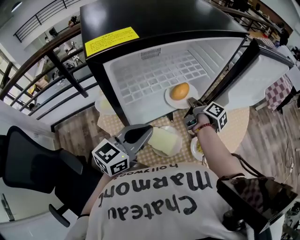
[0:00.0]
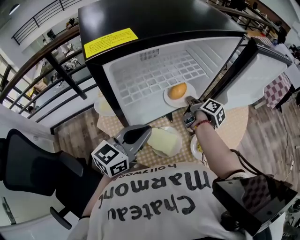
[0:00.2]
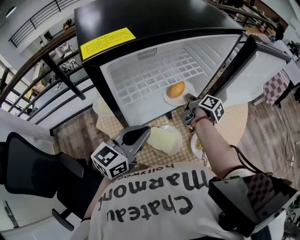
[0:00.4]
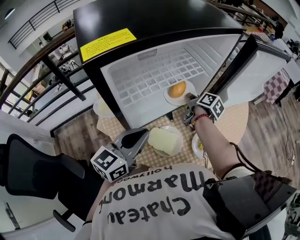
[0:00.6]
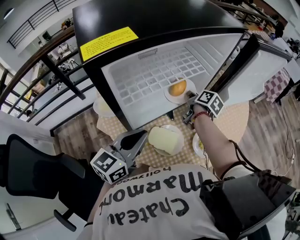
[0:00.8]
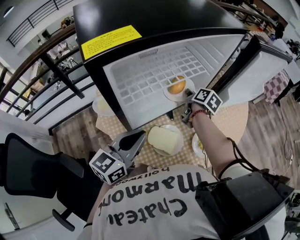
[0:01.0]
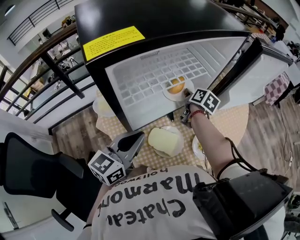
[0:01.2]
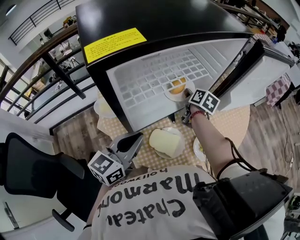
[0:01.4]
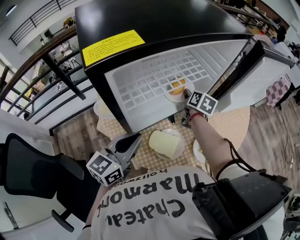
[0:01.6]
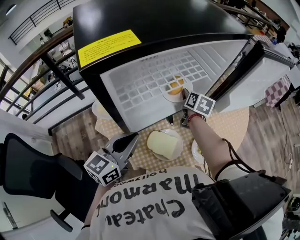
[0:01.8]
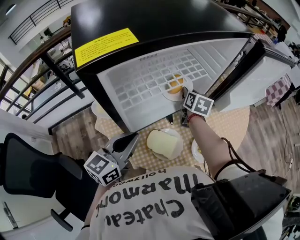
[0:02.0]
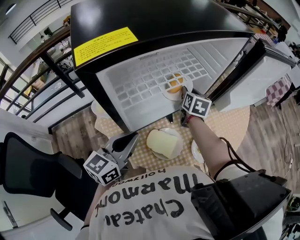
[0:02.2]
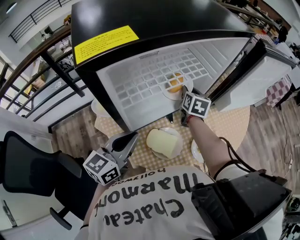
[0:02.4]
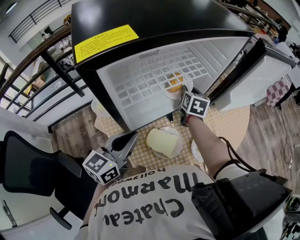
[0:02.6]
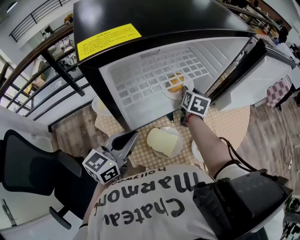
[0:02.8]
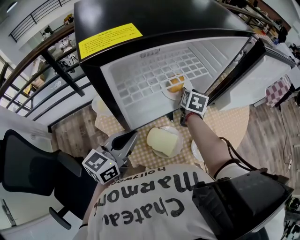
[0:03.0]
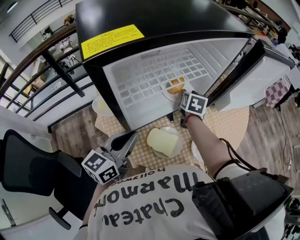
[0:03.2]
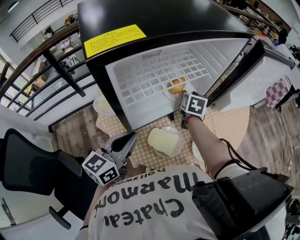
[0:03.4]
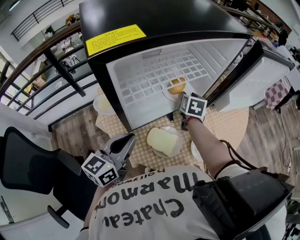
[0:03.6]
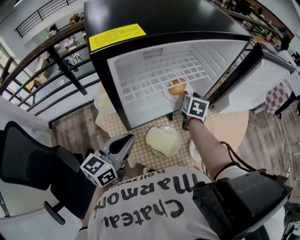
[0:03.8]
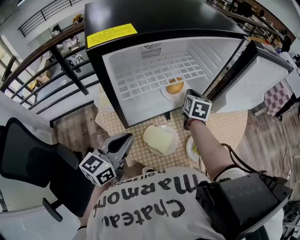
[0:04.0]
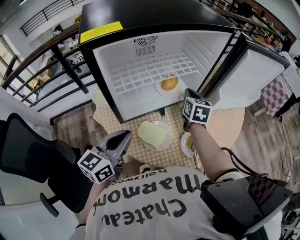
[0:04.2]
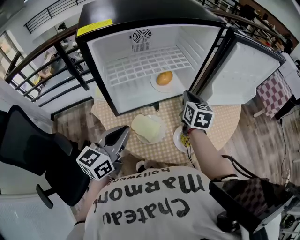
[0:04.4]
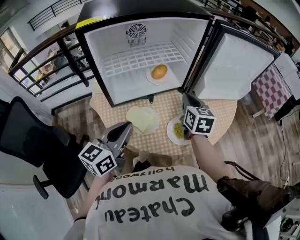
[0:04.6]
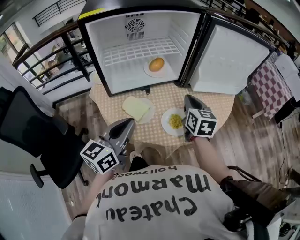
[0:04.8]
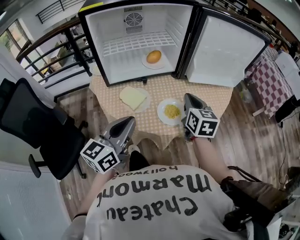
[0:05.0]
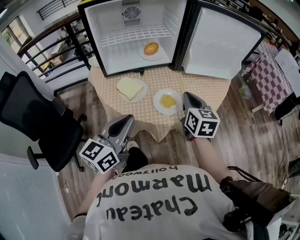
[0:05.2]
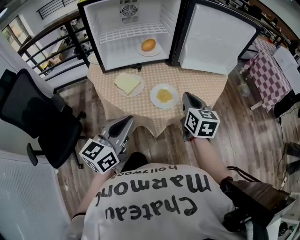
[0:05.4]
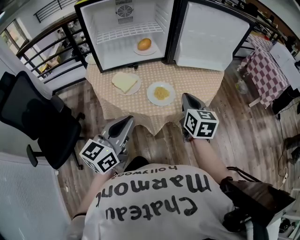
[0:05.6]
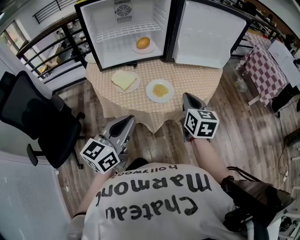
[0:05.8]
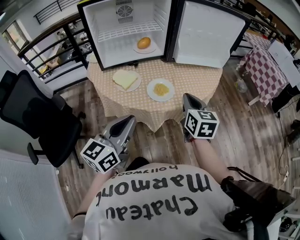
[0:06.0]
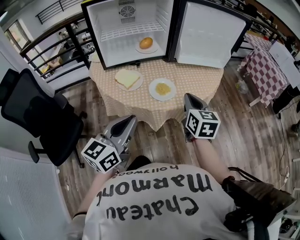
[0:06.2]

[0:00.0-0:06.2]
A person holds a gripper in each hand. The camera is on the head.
0:00.0 to 0:01.6: The right gripper moves forward, approximately 5 cm, and rolls counterclockwise, seen from behind, by roughly 40 degrees; the left gripper shifts by some 5 cm.
0:01.6 to 0:03.2: The right gripper opens up.
0:03.2 to 0:04.6: The right gripper moves backward, to the right and upward, about 20 cm, changes its angle by approximately 30 degrees, and closes up; the left gripper heads to the right and backward, covering approximately 15 cm.
0:04.6 to 0:06.2: The two grippers go about 25 cm backward and to the right.

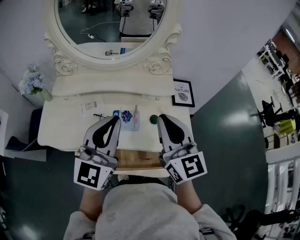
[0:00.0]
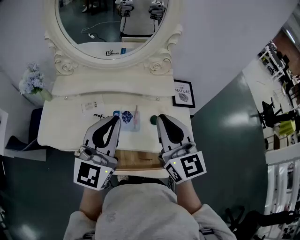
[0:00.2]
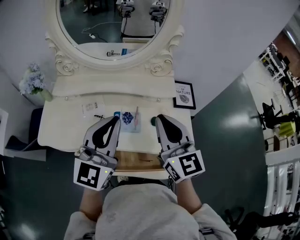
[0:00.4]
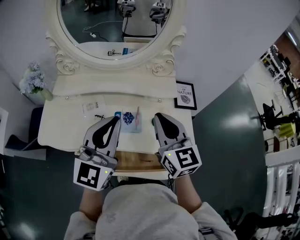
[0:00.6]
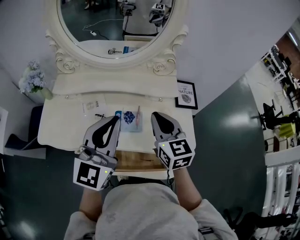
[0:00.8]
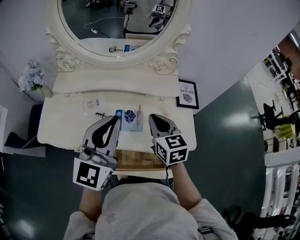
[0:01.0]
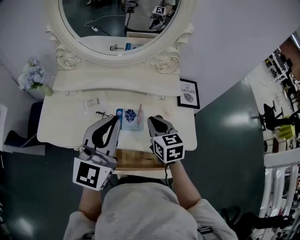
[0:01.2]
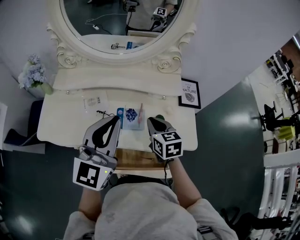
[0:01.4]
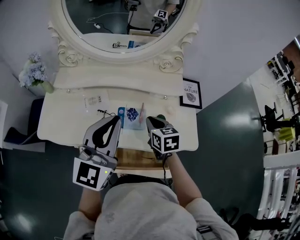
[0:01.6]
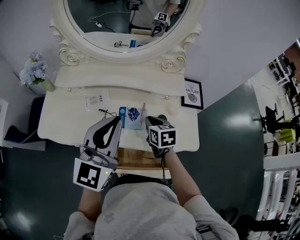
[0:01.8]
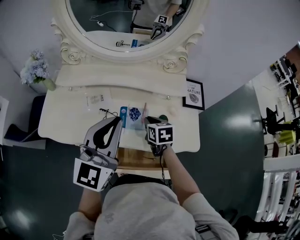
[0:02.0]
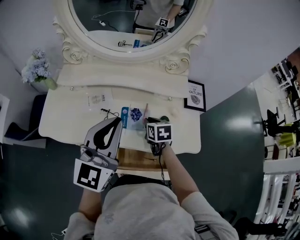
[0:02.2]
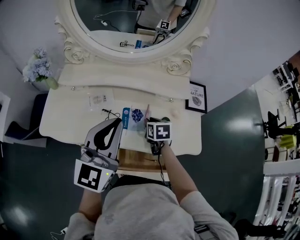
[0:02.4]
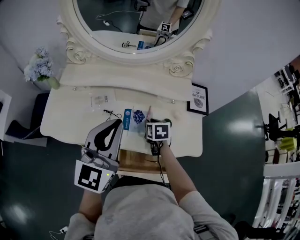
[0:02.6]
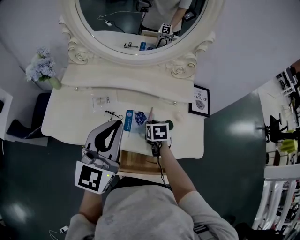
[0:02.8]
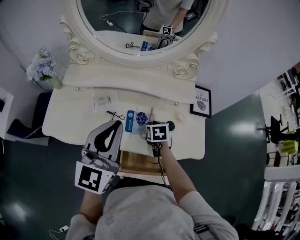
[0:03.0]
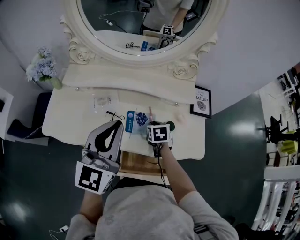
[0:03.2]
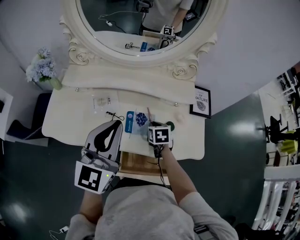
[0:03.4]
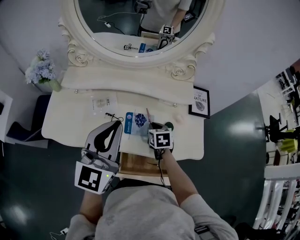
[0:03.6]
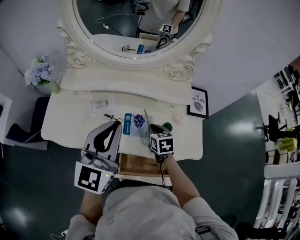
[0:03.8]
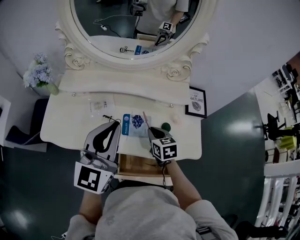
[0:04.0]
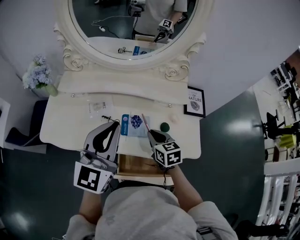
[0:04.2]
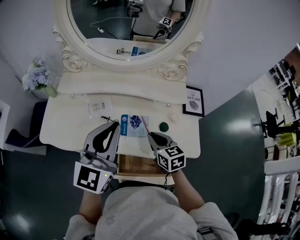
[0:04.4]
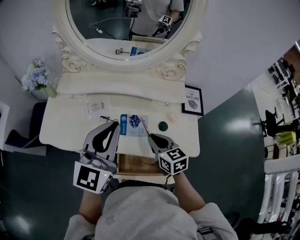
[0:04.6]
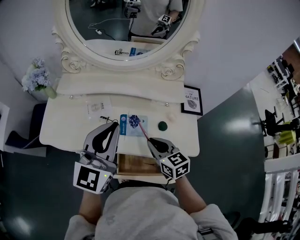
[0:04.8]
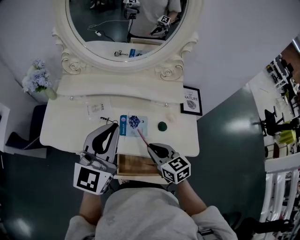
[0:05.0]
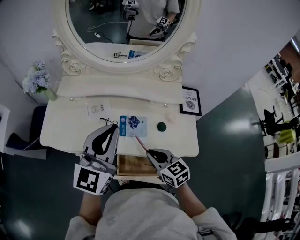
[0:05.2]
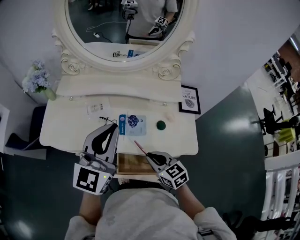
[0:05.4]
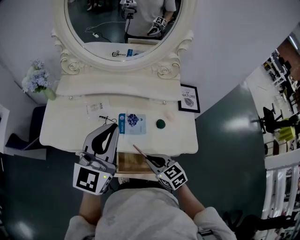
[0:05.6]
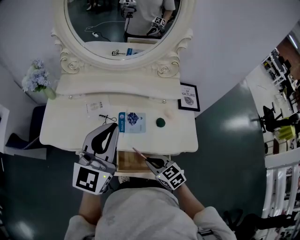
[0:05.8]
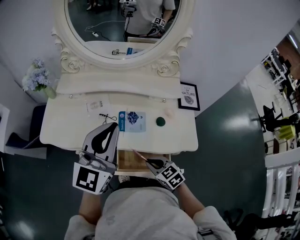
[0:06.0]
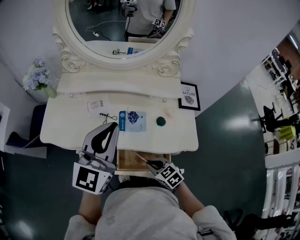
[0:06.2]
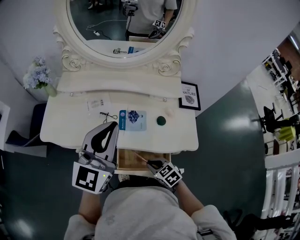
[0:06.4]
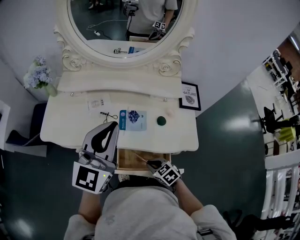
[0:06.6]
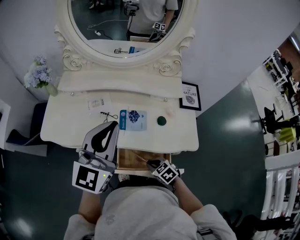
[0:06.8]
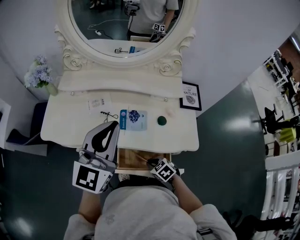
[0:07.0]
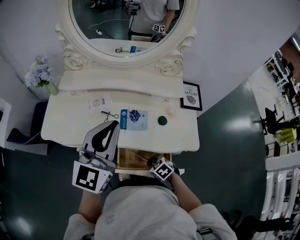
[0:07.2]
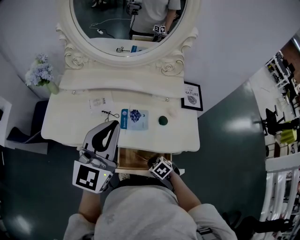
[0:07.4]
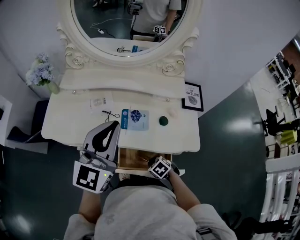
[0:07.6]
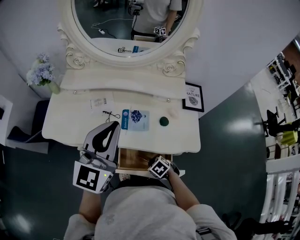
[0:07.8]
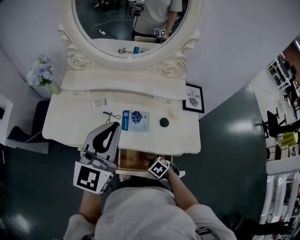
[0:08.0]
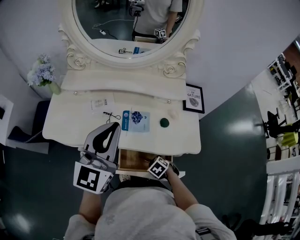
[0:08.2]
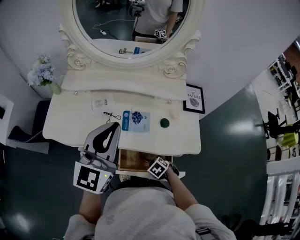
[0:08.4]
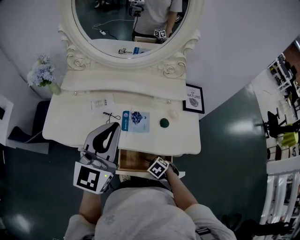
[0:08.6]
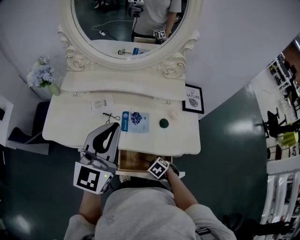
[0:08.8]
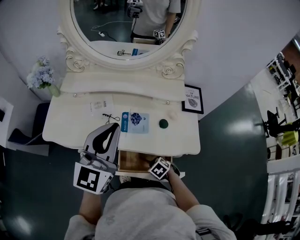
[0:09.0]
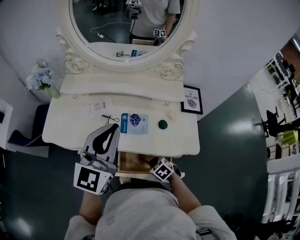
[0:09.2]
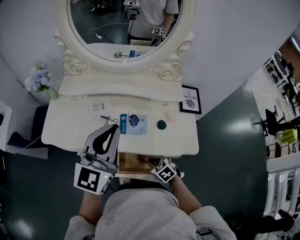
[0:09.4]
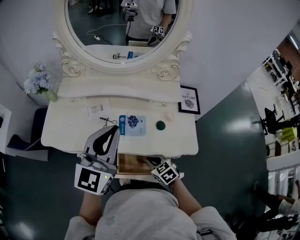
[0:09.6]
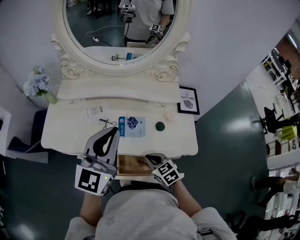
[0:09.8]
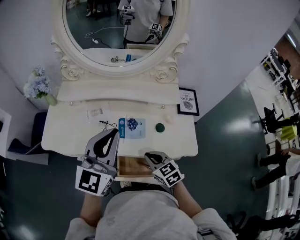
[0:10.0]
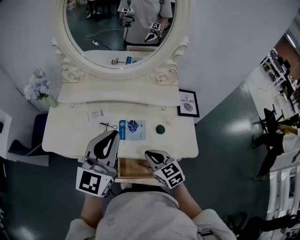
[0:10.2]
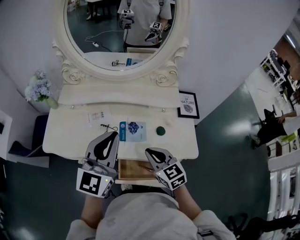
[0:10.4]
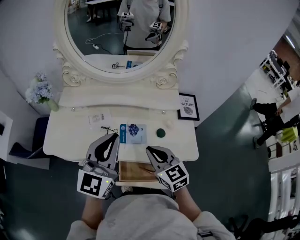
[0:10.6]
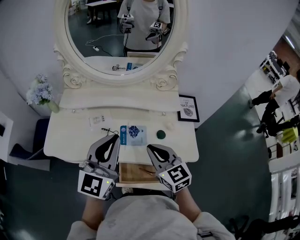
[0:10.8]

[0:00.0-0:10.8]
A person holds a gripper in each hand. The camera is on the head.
0:00.0 to 0:01.6: The right gripper shifts roughly 25 cm downward, and tilts its fingers about 40 degrees downward.
0:01.6 to 0:03.0: The right gripper travels downward by roughly 10 cm, and rotates about 20 degrees.
0:03.0 to 0:04.6: The right gripper goes approximately 15 cm upward and backward, and changes its angle by roughly 30 degrees.
0:04.6 to 0:06.2: The right gripper heads backward and downward, covering some 20 cm, and swivels about 30 degrees.
0:06.2 to 0:07.8: The right gripper shifts approximately 10 cm downward, and changes its angle by about 30 degrees.
0:07.8 to 0:09.2: The grippers stay close to where they were, moving slightly.
0:09.2 to 0:10.8: The right gripper moves upward, some 30 cm, and angles its fingers upward, by some 50 degrees.

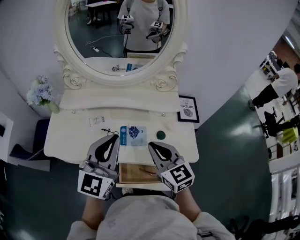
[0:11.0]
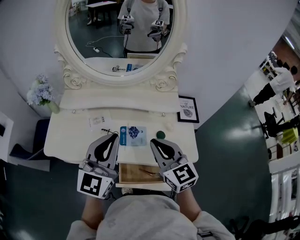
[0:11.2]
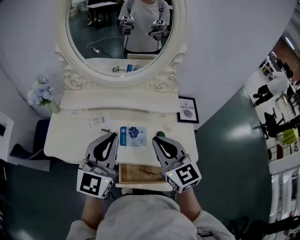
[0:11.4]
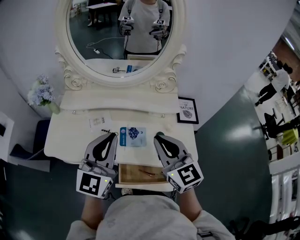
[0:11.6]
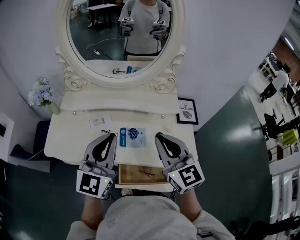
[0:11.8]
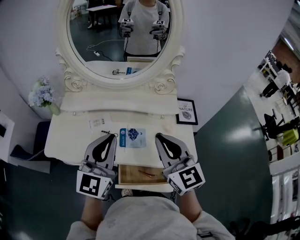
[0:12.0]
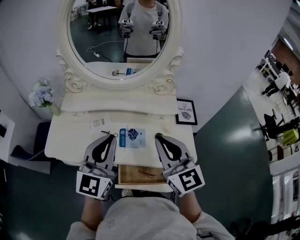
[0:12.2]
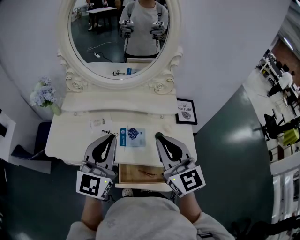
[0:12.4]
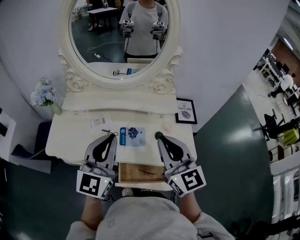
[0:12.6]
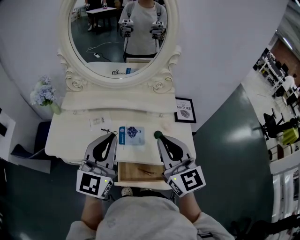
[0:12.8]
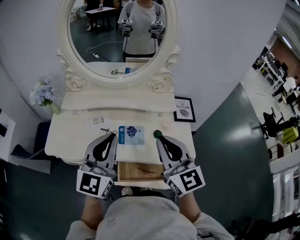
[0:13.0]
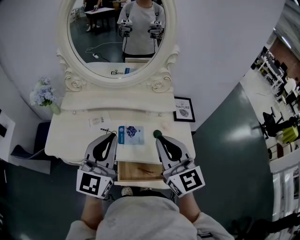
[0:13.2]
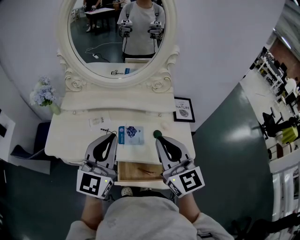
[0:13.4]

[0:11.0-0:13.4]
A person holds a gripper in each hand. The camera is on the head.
0:11.0 to 0:12.2: The right gripper travels upward by approximately 10 cm.
0:12.2 to 0:13.4: The grippers make only small movements.

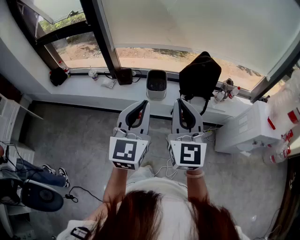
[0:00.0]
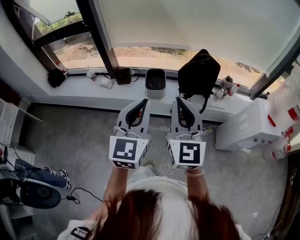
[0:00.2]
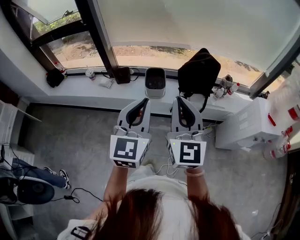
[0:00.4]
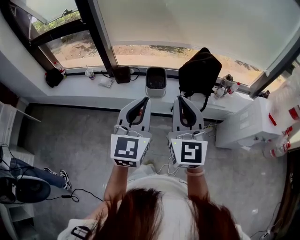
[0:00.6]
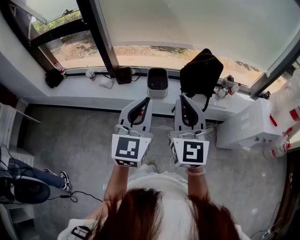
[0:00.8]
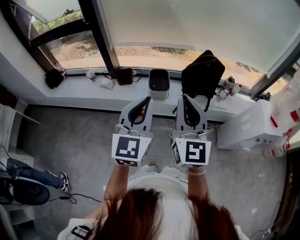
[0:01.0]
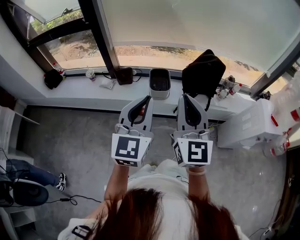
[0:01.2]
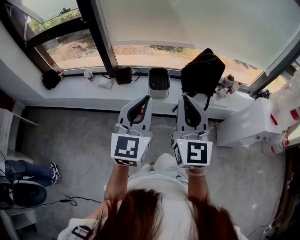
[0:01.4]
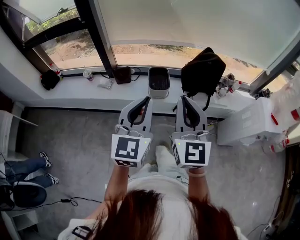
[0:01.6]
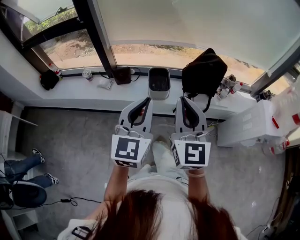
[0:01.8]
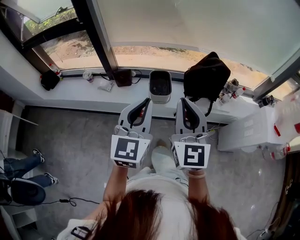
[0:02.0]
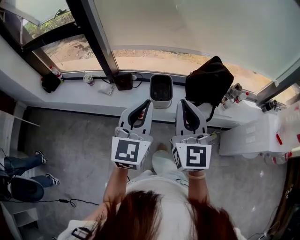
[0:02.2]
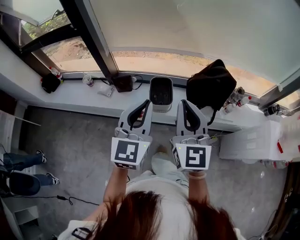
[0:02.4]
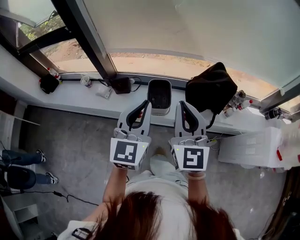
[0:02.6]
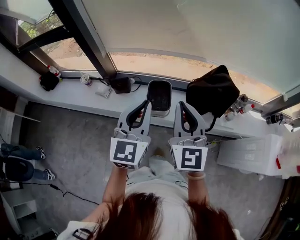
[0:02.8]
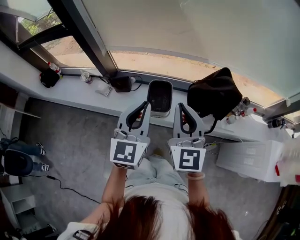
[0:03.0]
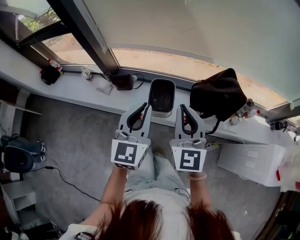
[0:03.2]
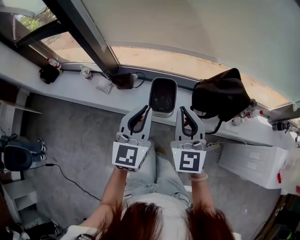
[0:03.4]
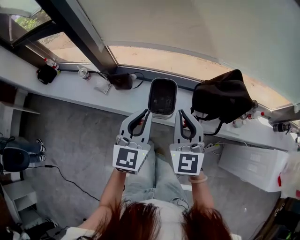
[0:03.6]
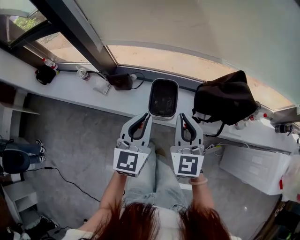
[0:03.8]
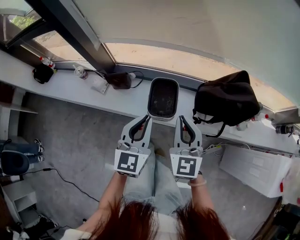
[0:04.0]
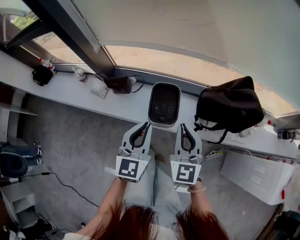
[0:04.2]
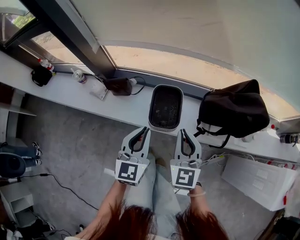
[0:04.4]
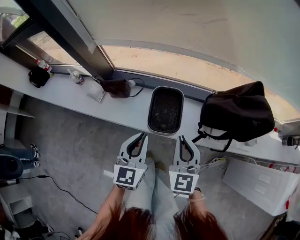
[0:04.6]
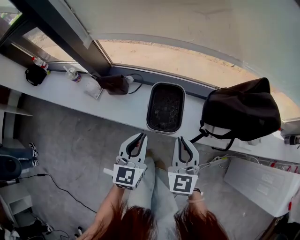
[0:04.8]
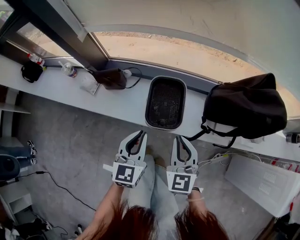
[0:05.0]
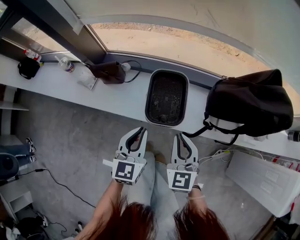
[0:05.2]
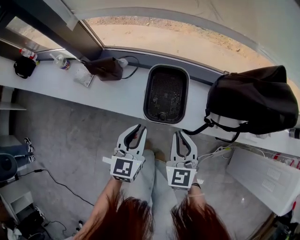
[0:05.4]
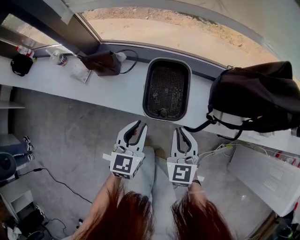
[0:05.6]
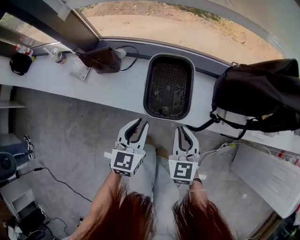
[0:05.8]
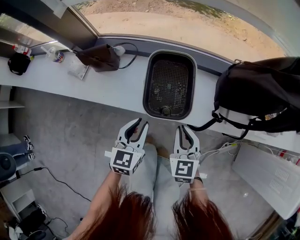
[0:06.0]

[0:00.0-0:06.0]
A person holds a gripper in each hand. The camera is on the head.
0:00.0 to 0:01.6: The two grippers go some 10 cm to the left and forward.
0:01.6 to 0:03.0: Both grippers travel together forward, some 25 cm.
0:03.0 to 0:04.4: Both grippers move downward, roughly 25 cm.
0:04.4 to 0:06.0: Both grippers travel together downward, some 30 cm.
